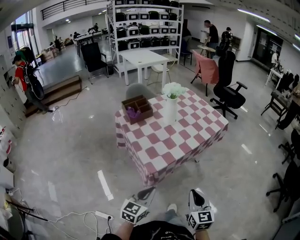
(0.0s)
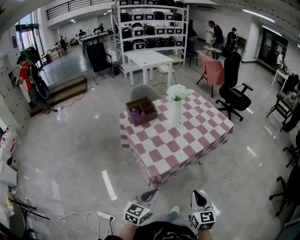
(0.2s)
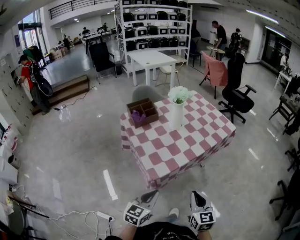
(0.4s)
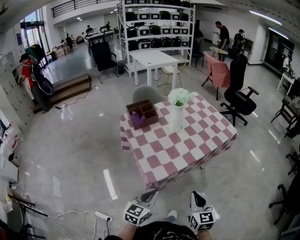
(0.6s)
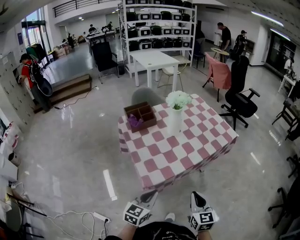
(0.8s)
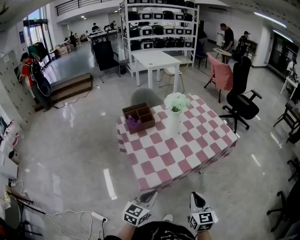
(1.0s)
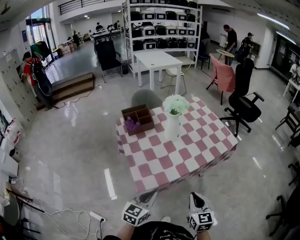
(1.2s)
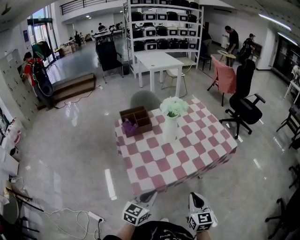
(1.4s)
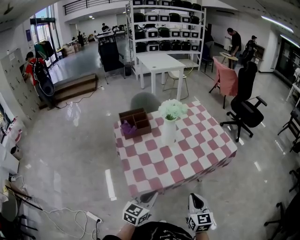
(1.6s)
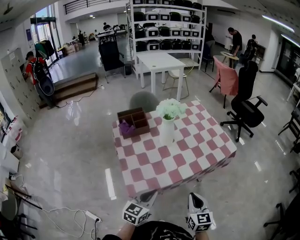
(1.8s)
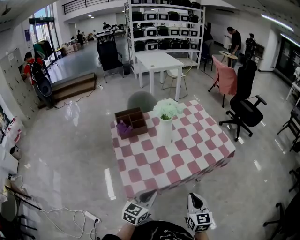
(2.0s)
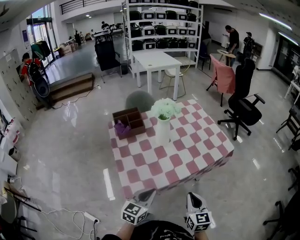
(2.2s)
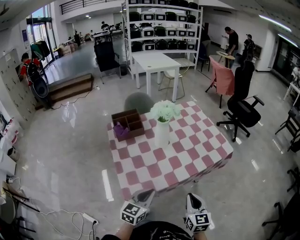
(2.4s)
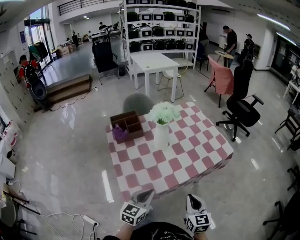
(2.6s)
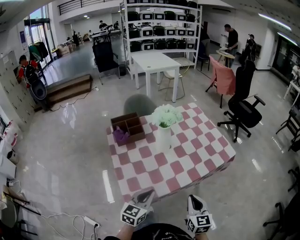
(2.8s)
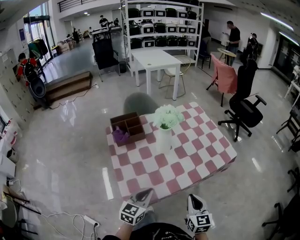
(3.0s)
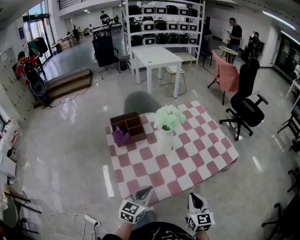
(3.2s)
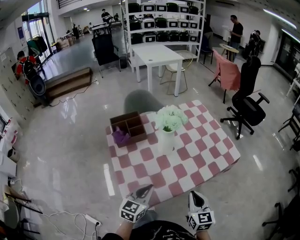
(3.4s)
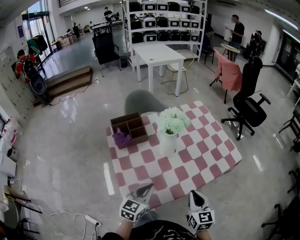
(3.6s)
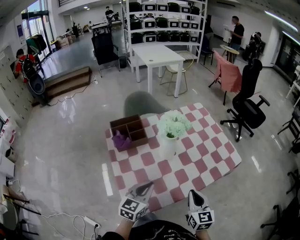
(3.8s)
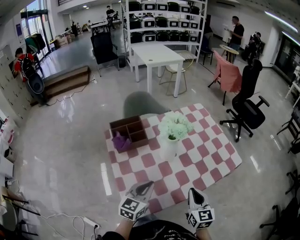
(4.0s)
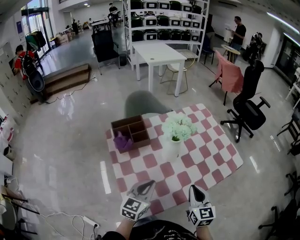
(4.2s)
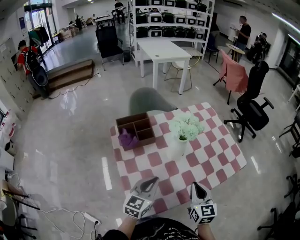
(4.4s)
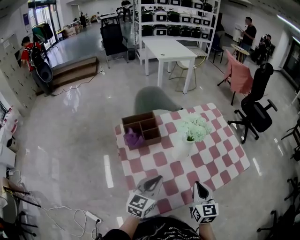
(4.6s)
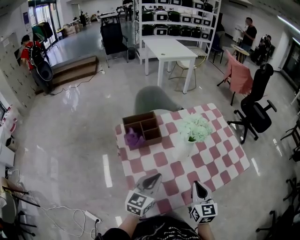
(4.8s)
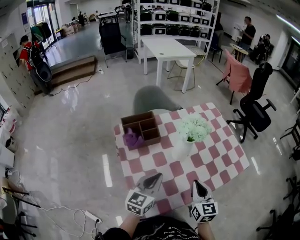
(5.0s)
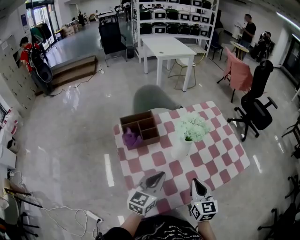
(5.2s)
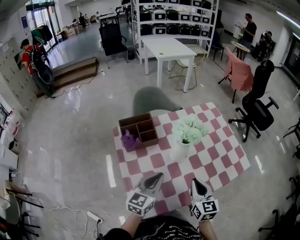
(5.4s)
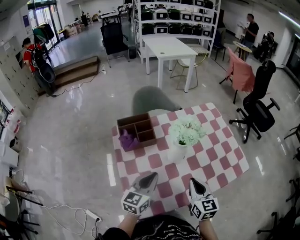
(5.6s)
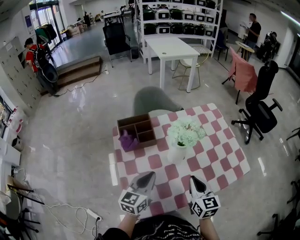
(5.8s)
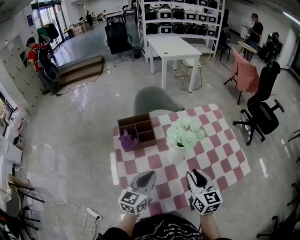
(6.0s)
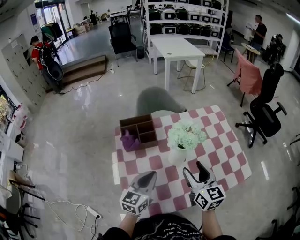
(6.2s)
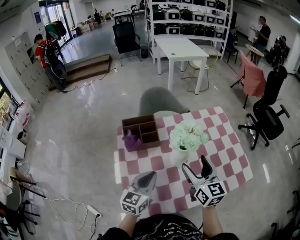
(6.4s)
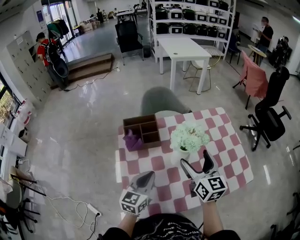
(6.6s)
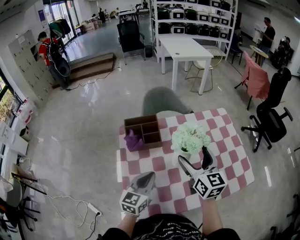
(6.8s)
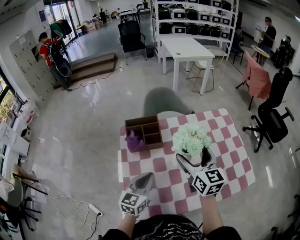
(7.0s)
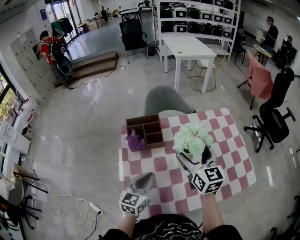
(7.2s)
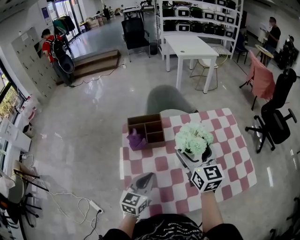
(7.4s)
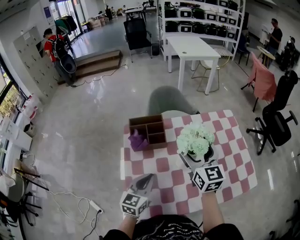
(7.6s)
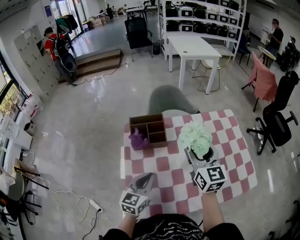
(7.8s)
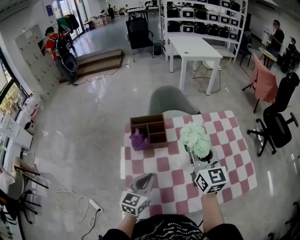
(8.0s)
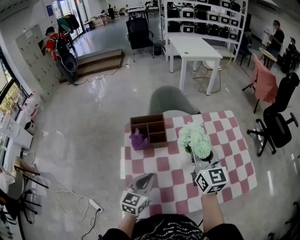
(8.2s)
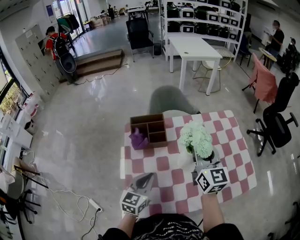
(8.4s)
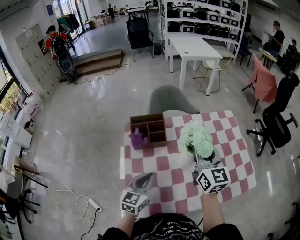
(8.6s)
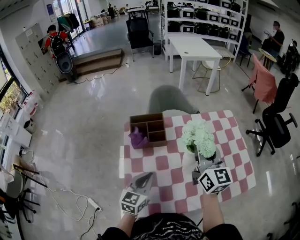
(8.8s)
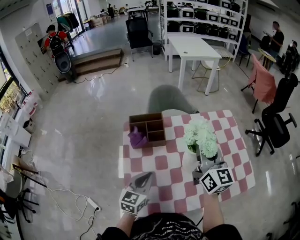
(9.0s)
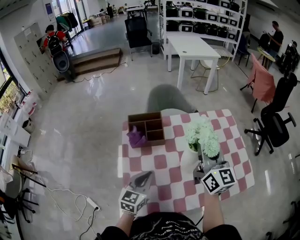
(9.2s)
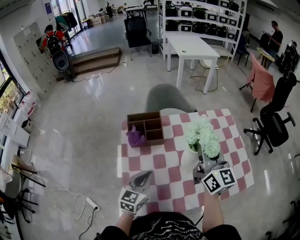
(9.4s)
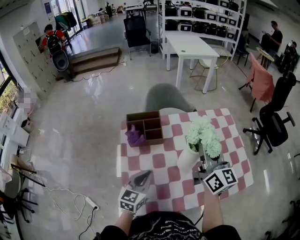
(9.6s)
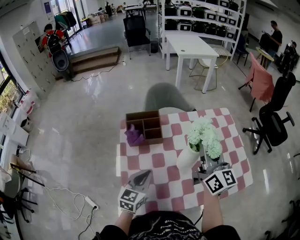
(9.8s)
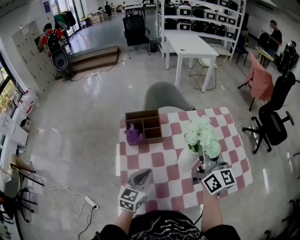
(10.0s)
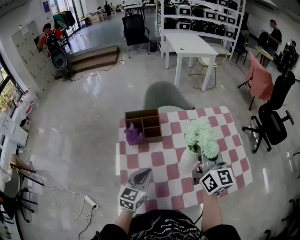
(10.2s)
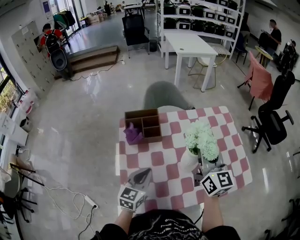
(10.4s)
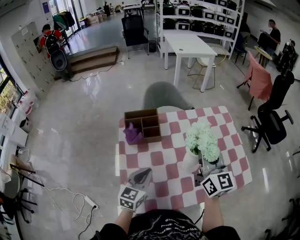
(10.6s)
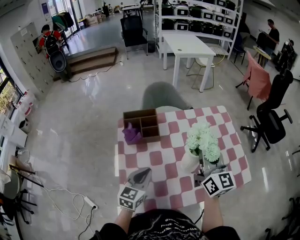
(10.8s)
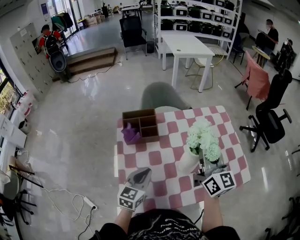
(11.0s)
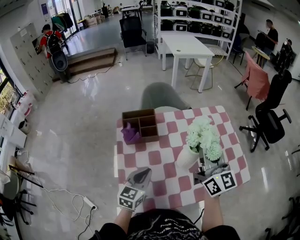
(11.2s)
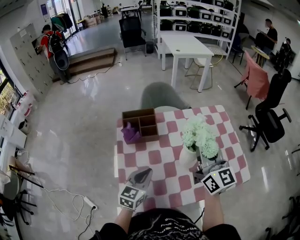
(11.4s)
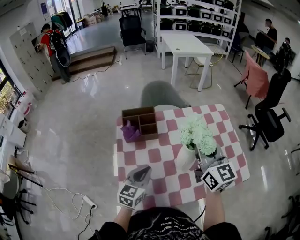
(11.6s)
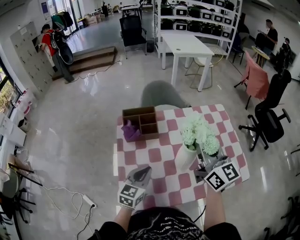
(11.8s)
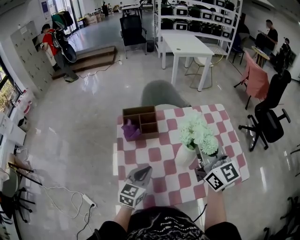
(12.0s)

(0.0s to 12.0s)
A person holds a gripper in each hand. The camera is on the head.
0.0s - 1.6s: The left gripper shifts about 20 cm forward and to the right, while the right gripper is displaced forward by approximately 20 cm.
1.6s - 3.0s: The two grippers go roughly 5 cm forward.
3.0s - 4.4s: The grippers both shift forward and to the left by about 10 cm.
4.4s - 6.0s: The left gripper ends up roughly 5 cm from where it was. The right gripper heads forward, covering some 10 cm.
6.0s - 7.6s: The right gripper travels forward and upward by roughly 15 cm, and opens its fingers.
7.6s - 9.0s: The right gripper changes place by approximately 5 cm, and closes up.
9.0s - 10.4s: The grippers stay close to where they were, moving slightly.
10.4s - 12.0s: The right gripper moves roughly 5 cm.

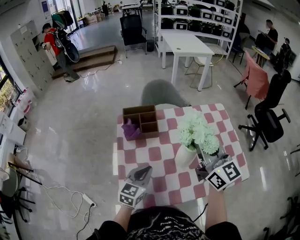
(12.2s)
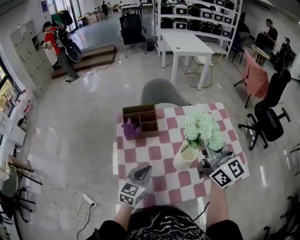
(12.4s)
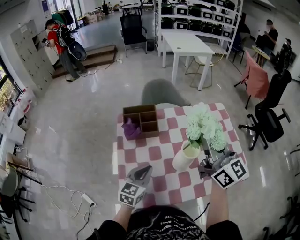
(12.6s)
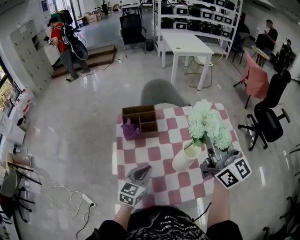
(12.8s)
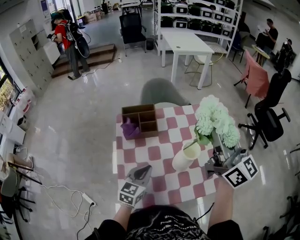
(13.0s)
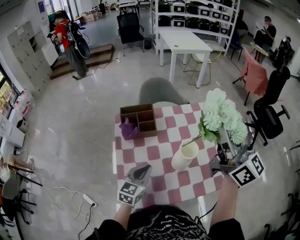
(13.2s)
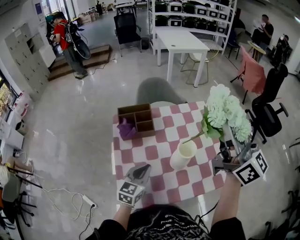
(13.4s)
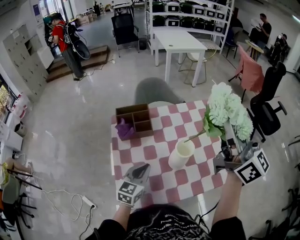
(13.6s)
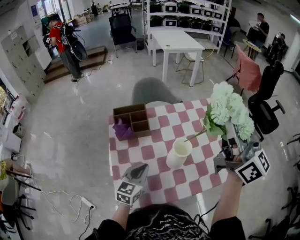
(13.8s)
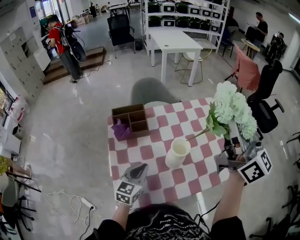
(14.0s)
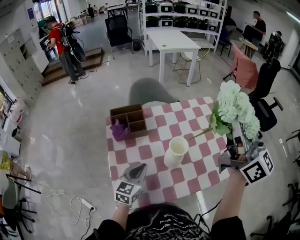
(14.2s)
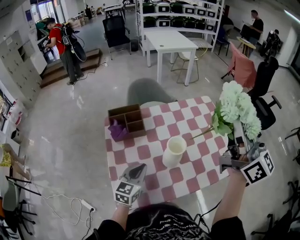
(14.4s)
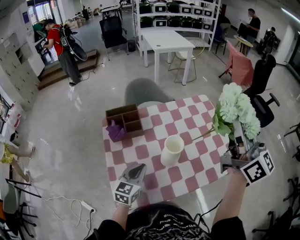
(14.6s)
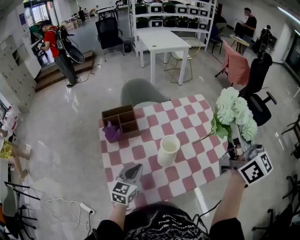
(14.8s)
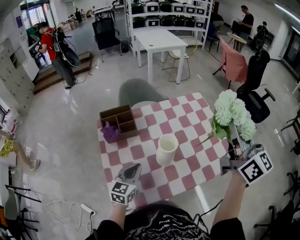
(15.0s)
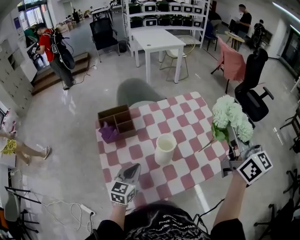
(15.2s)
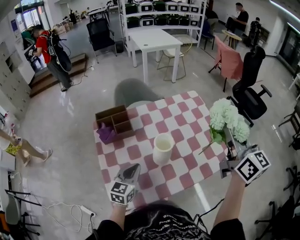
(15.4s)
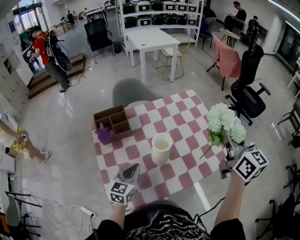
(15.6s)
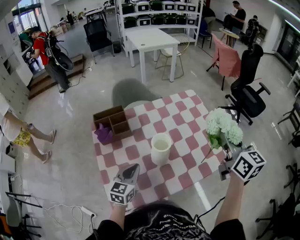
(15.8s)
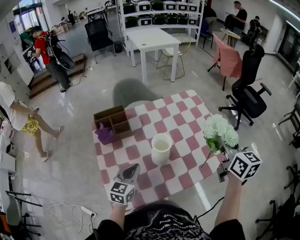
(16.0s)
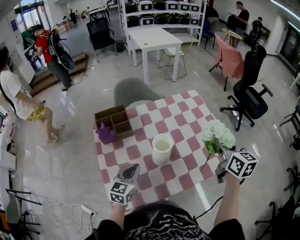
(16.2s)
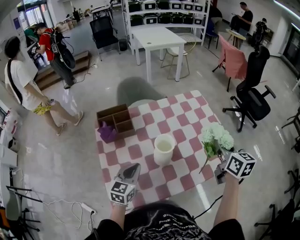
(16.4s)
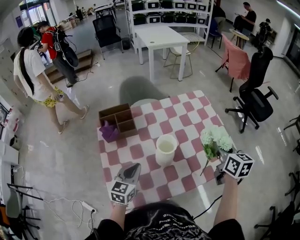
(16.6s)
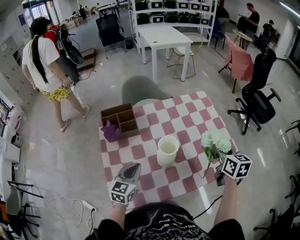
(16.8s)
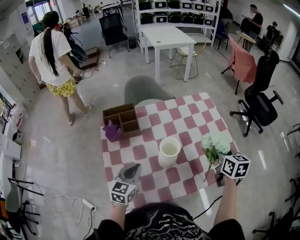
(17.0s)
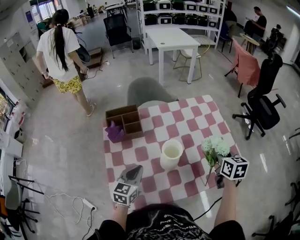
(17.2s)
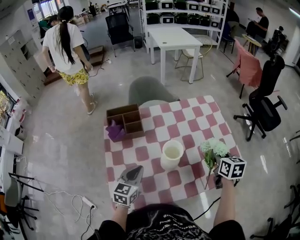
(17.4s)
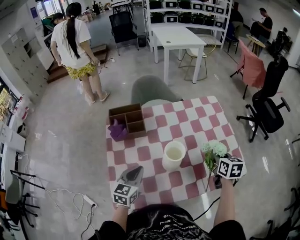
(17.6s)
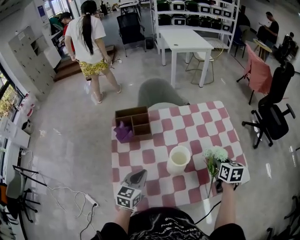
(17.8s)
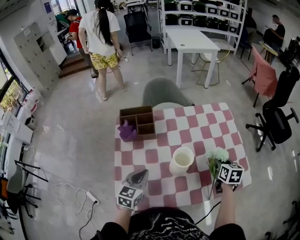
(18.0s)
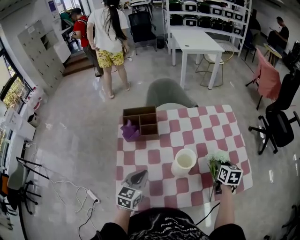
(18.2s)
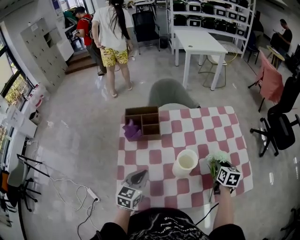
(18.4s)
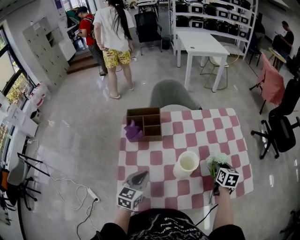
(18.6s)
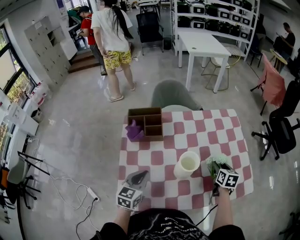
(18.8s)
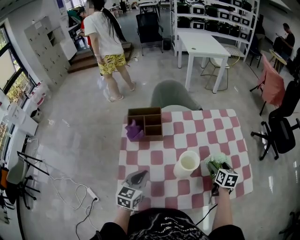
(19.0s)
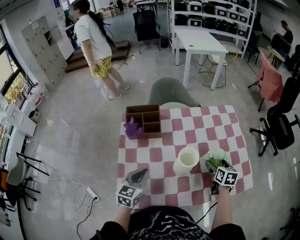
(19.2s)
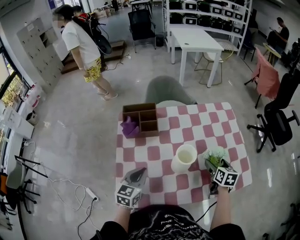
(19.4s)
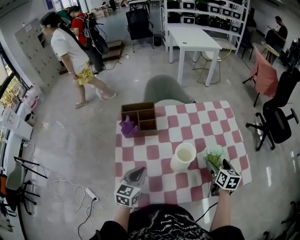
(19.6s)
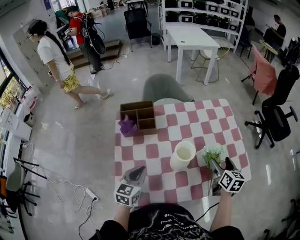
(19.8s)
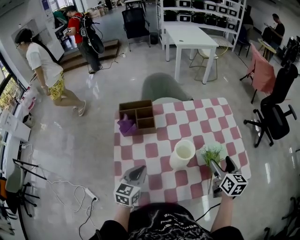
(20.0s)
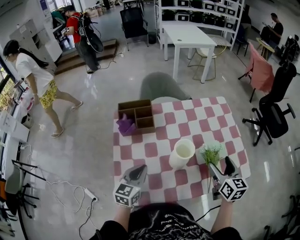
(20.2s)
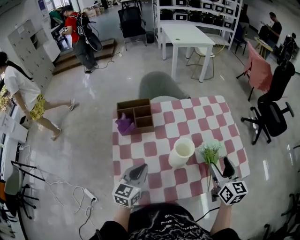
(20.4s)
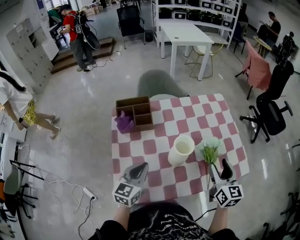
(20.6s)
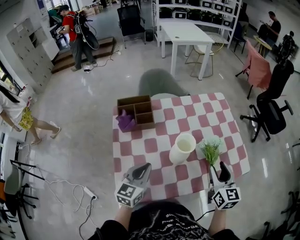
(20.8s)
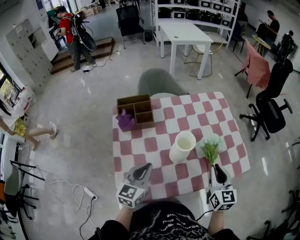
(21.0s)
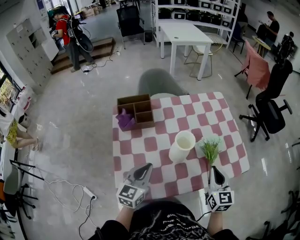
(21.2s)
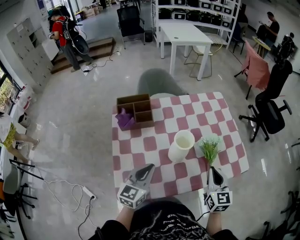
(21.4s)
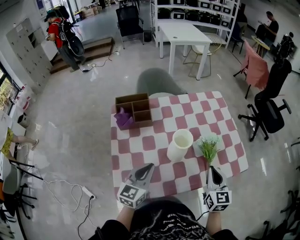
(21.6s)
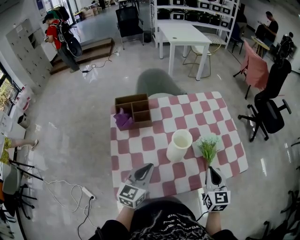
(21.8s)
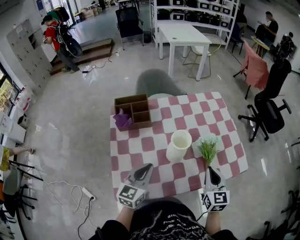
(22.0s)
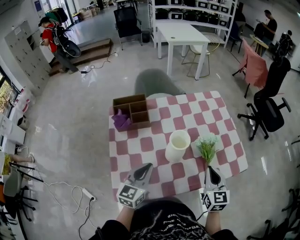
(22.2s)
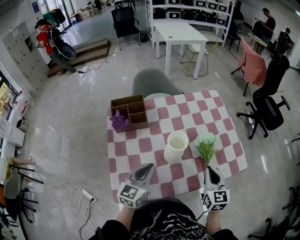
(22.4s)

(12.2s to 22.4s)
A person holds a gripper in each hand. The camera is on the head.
12.2s - 13.6s: The right gripper travels upward and to the right by roughly 15 cm.
13.6s - 15.2s: The right gripper heads to the right, covering about 10 cm, and changes its angle by some 20 degrees.
15.2s - 16.6s: The right gripper is displaced downward by approximately 20 cm, and changes its angle by some 30 degrees.
16.6s - 18.0s: The right gripper goes approximately 15 cm downward and forward.
18.0s - 19.4s: The right gripper opens its fingers.
19.4s - 21.0s: The left gripper shifts by some 5 cm; the right gripper shifts some 15 cm backward and upward, swivels some 30 degrees, and closes up.
21.0s - 22.4s: There are only small adjustments of the grippers.

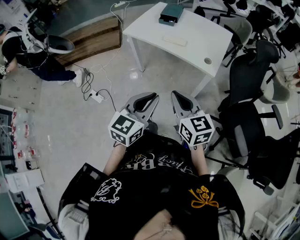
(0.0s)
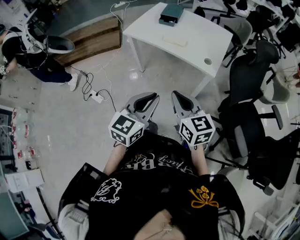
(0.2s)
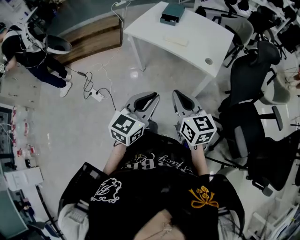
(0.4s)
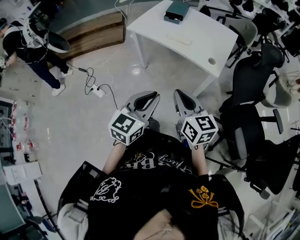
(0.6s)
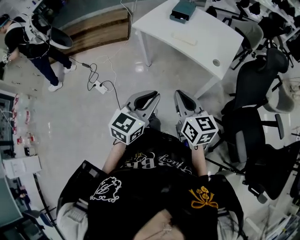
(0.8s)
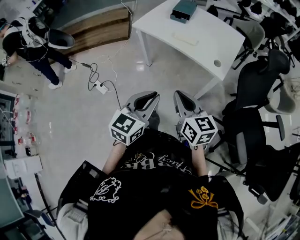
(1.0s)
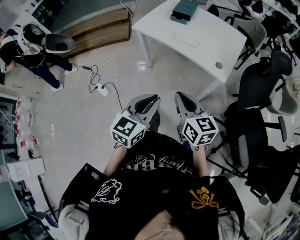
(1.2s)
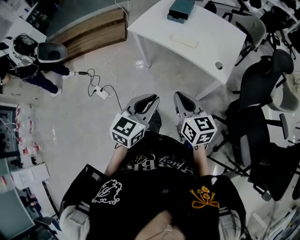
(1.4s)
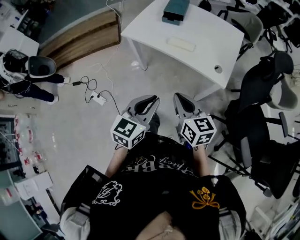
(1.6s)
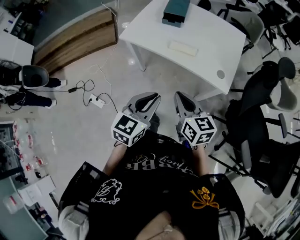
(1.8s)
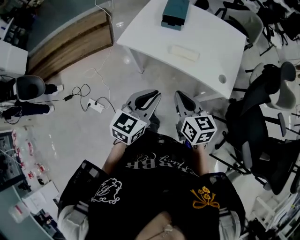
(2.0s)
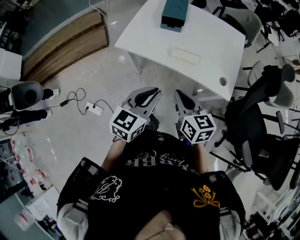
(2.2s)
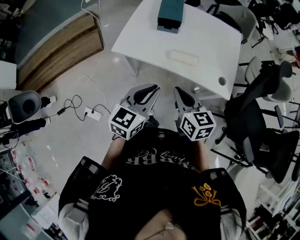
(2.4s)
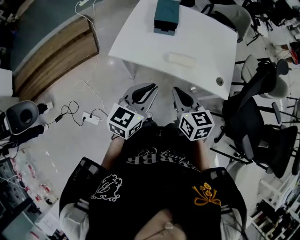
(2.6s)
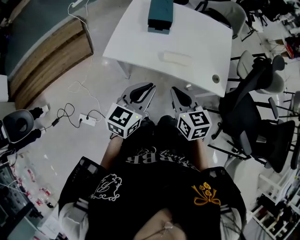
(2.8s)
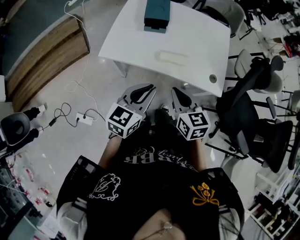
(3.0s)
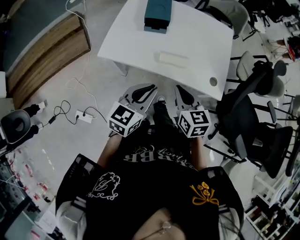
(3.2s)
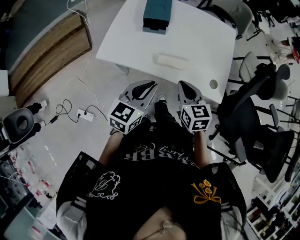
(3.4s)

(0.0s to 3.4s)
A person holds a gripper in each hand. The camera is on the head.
0.0s - 1.6s: Both grippers move forward, some 15 cm.
1.6s - 3.4s: The grippers both shift forward by about 30 cm. The right gripper swivels roughly 20 degrees.
